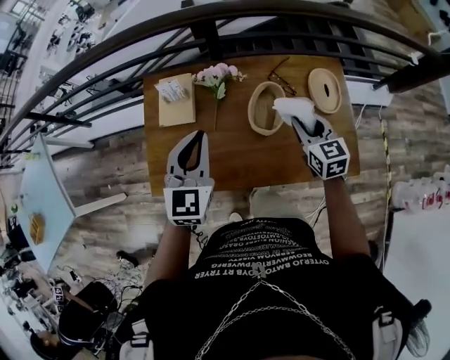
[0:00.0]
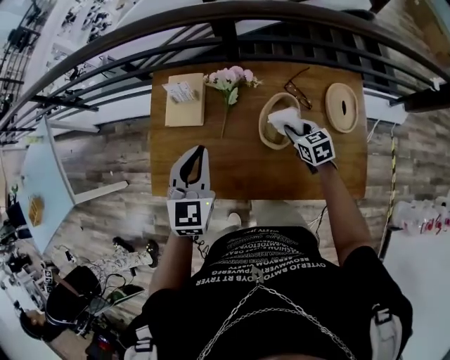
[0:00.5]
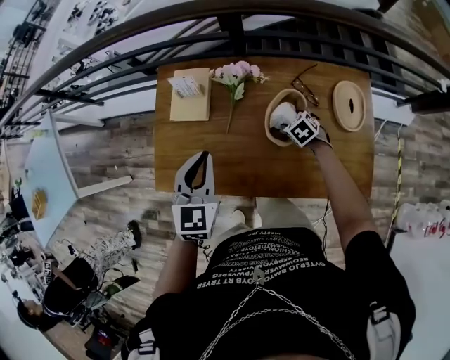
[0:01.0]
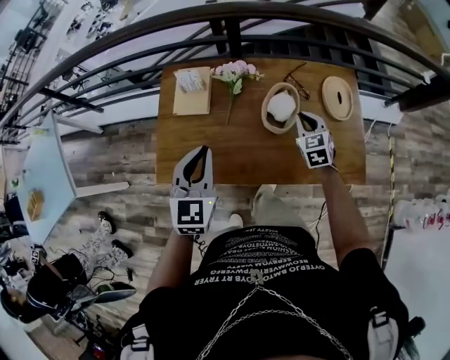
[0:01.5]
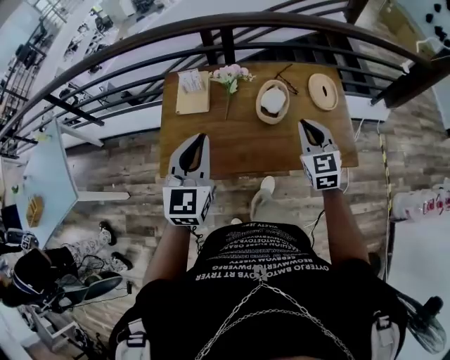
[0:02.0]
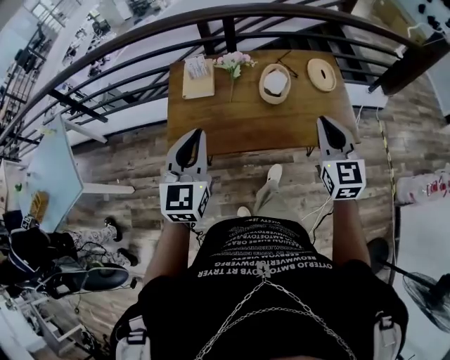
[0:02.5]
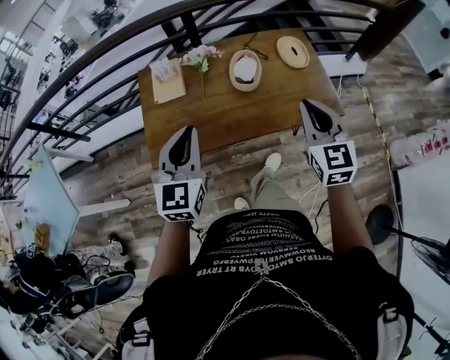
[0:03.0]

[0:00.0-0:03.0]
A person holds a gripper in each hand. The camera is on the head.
0:00.0 to 0:01.5: The right gripper travels downward and back again, some 25 cm each way, and opens, then closes again; the left gripper heads backward, covering about 5 cm.
0:01.5 to 0:03.0: The left gripper goes roughly 15 cm backward and upward. Meanwhile the right gripper is displaced backward and upward by some 35 cm, and changes its angle by approximately 30 degrees.

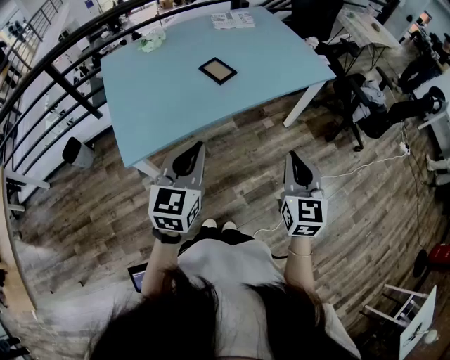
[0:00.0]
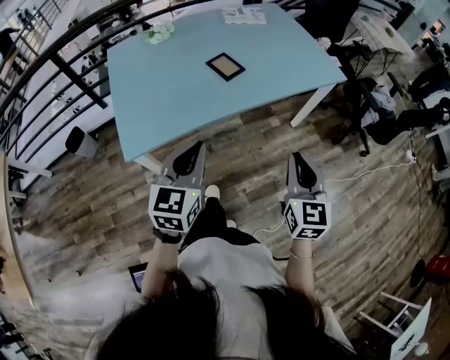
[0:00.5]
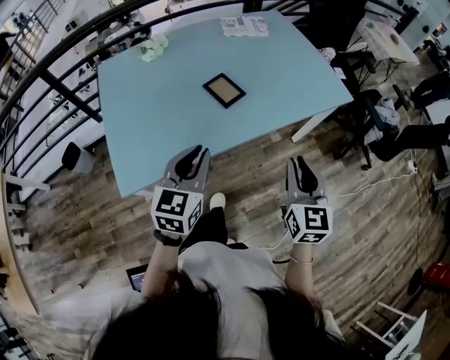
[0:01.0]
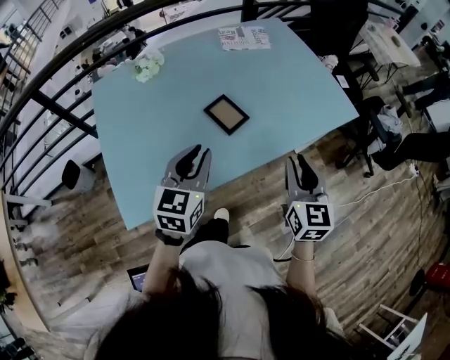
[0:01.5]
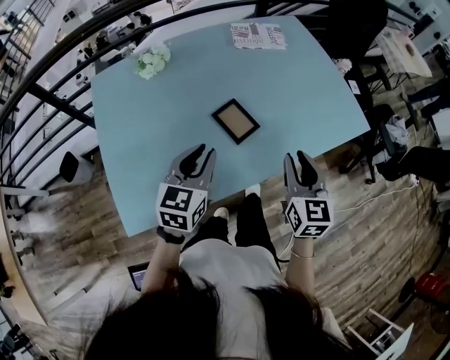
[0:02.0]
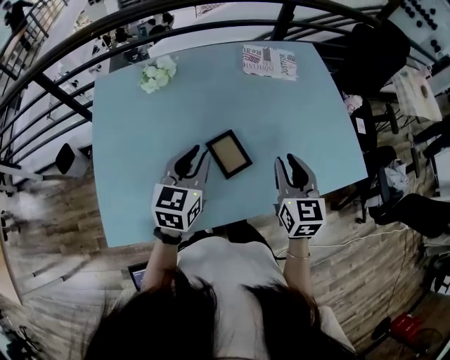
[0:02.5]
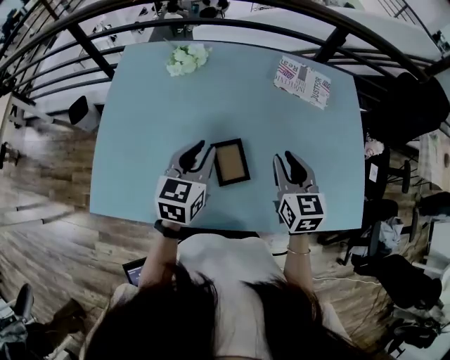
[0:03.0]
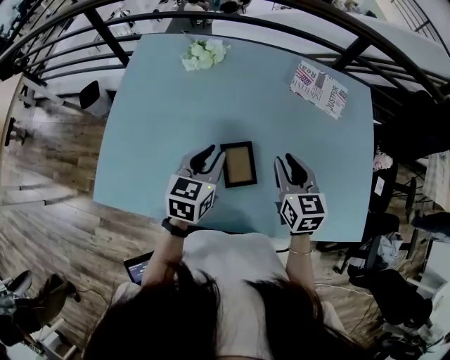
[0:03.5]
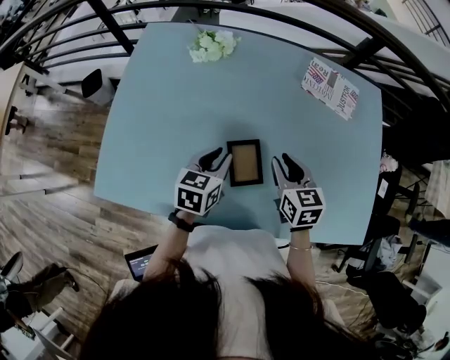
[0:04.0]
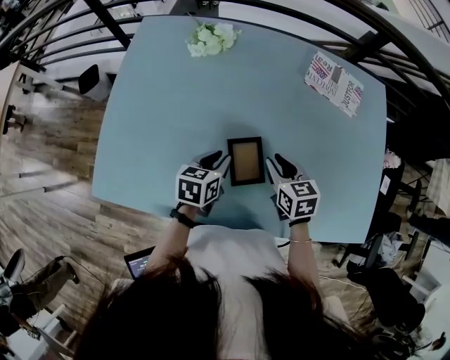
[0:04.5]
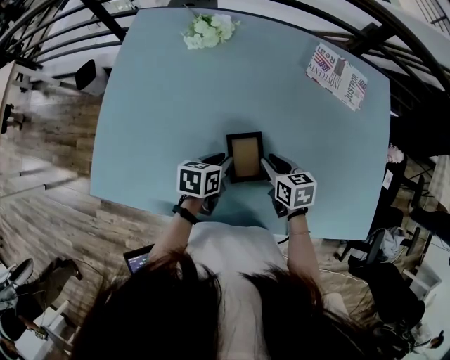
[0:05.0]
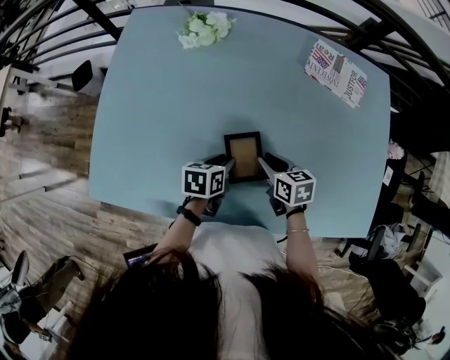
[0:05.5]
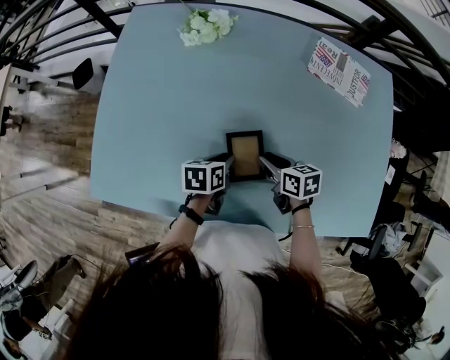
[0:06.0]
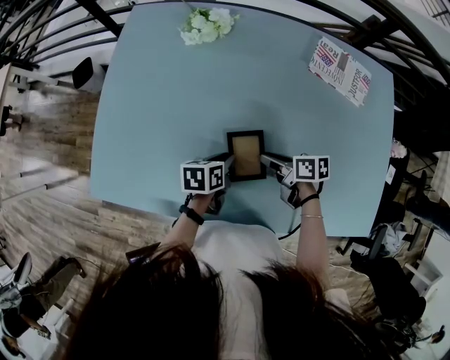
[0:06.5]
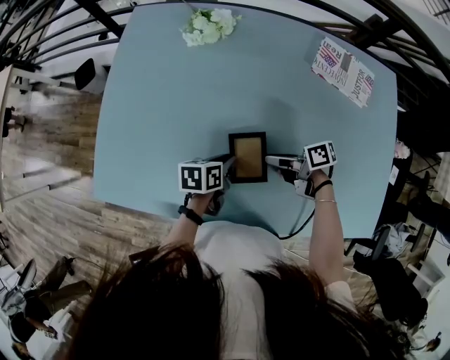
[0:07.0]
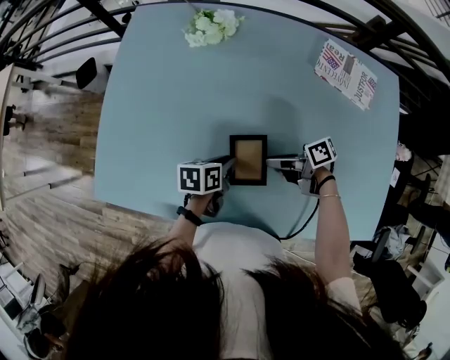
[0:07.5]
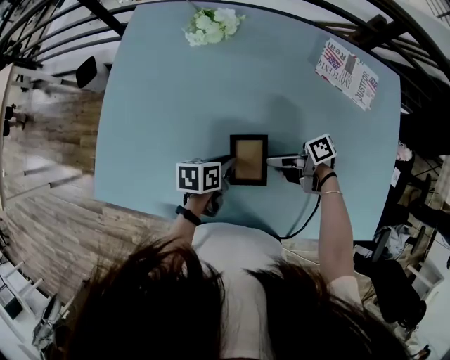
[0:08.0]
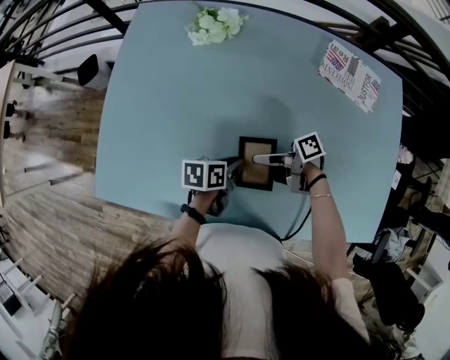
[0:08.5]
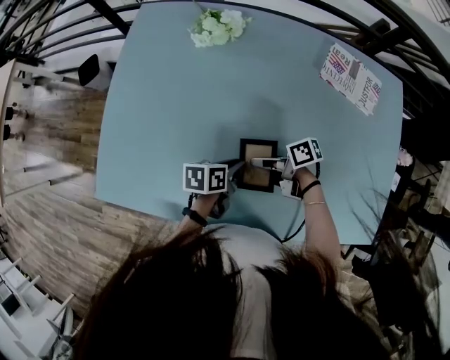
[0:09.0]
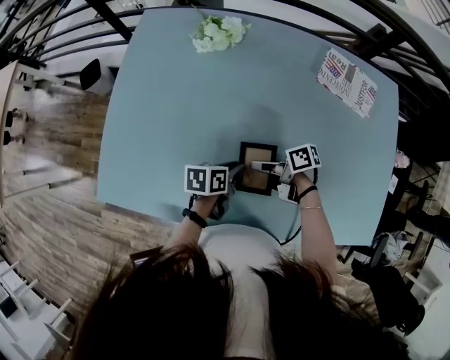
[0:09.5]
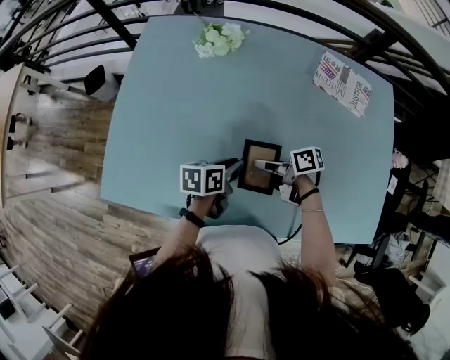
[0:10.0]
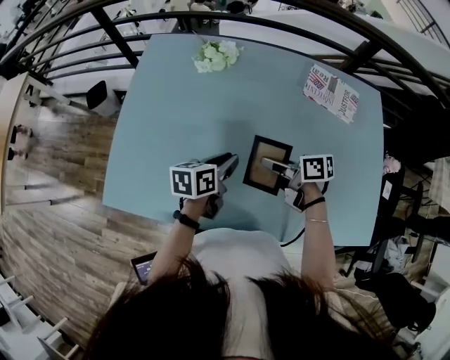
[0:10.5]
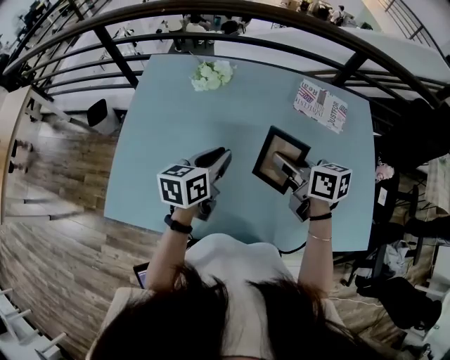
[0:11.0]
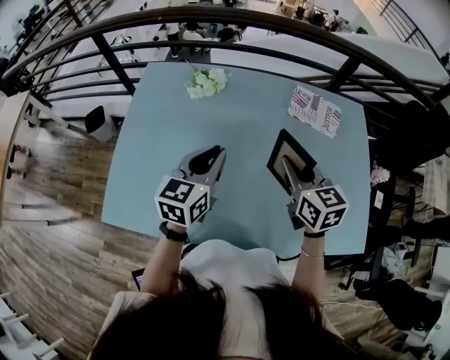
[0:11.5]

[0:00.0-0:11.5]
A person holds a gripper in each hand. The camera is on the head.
0:00.0 to 0:02.0: Both grippers travel together forward, approximately 30 cm.
0:02.0 to 0:04.0: The right gripper ends up approximately 25 cm from where it was, and turns by some 40 degrees, while the left gripper changes place by about 15 cm, and rotates roughly 30 degrees.
0:04.0 to 0:06.0: The grippers both shift downward by some 10 cm. The right gripper turns by approximately 30 degrees. The left gripper turns by about 30 degrees.
0:06.0 to 0:07.5: The right gripper swivels roughly 50 degrees.
0:07.5 to 0:09.5: The right gripper changes place by roughly 5 cm.
0:09.5 to 0:11.5: The two grippers go some 25 cm upward. The right gripper changes its angle by about 80 degrees. Meanwhile the left gripper swivels about 50 degrees.

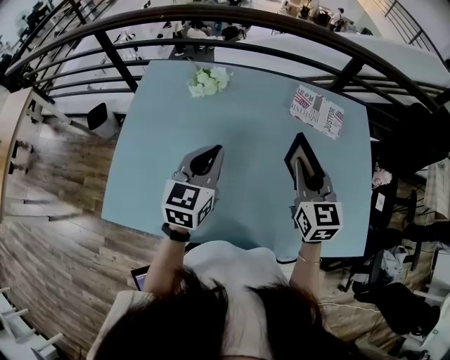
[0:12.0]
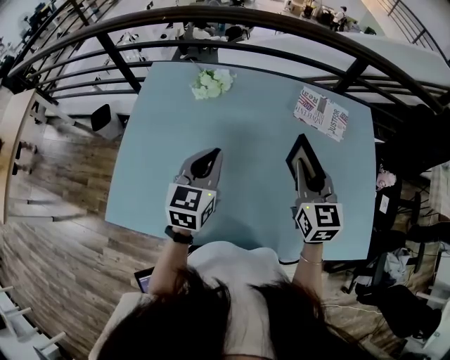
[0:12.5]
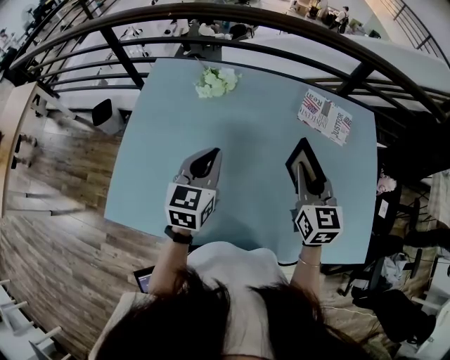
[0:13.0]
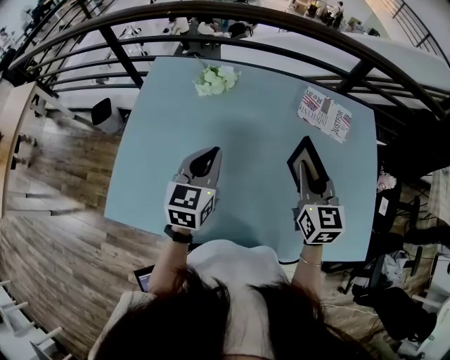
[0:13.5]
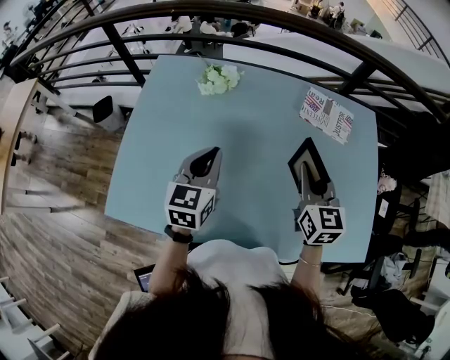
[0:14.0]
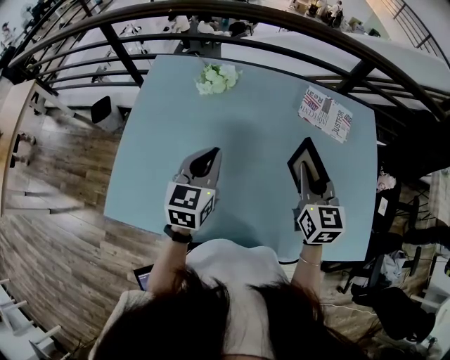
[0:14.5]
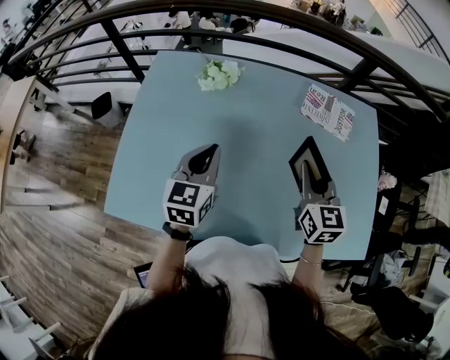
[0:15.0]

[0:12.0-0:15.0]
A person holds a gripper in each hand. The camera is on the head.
0:12.0 to 0:13.5: The grippers stay close to where they were, moving slightly.
0:13.5 to 0:15.0: Both grippers stay about where they are.

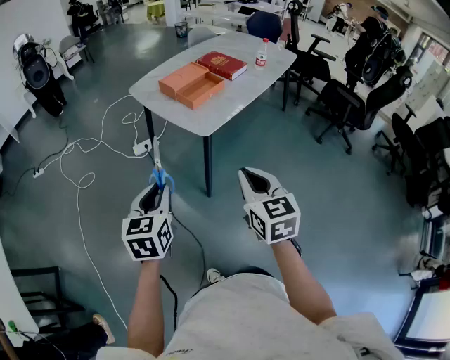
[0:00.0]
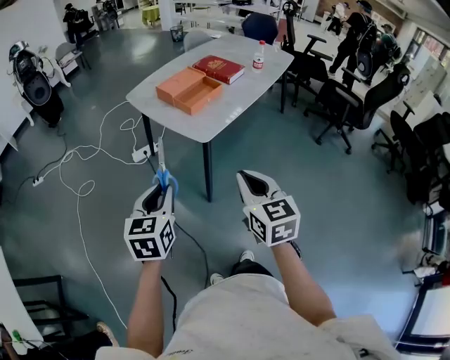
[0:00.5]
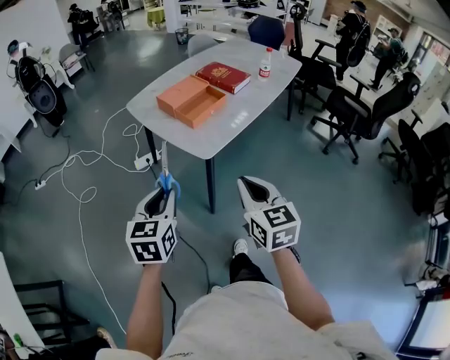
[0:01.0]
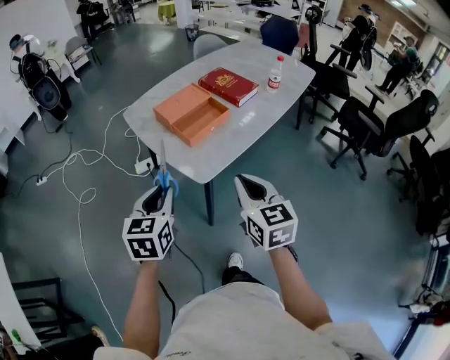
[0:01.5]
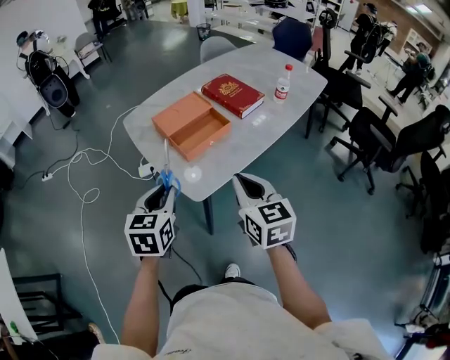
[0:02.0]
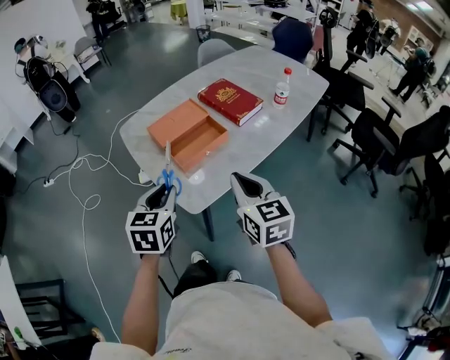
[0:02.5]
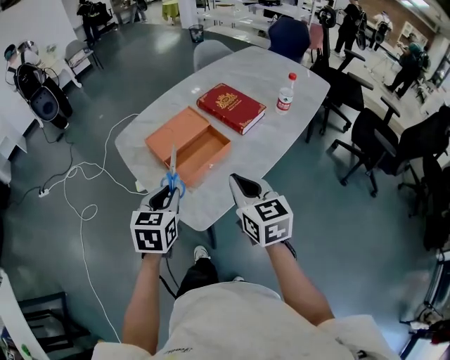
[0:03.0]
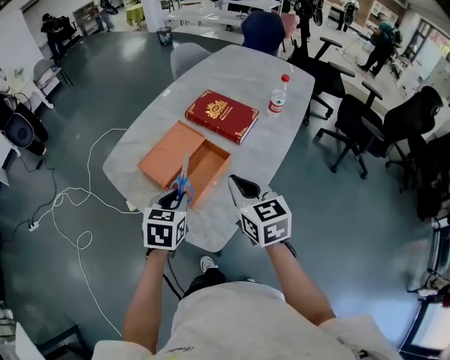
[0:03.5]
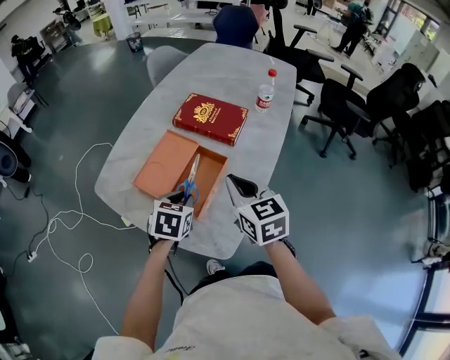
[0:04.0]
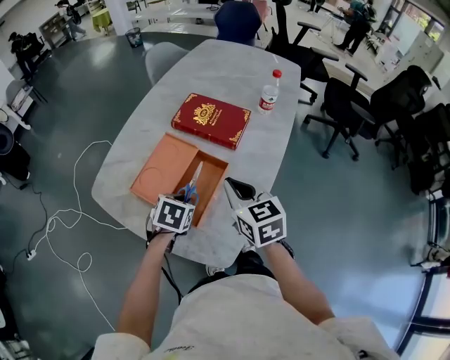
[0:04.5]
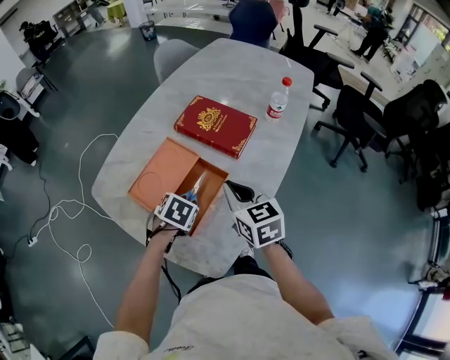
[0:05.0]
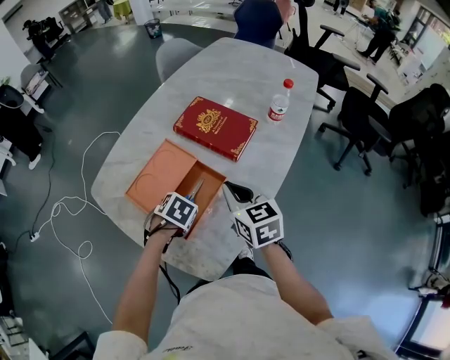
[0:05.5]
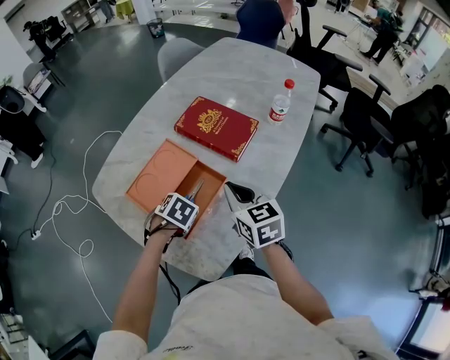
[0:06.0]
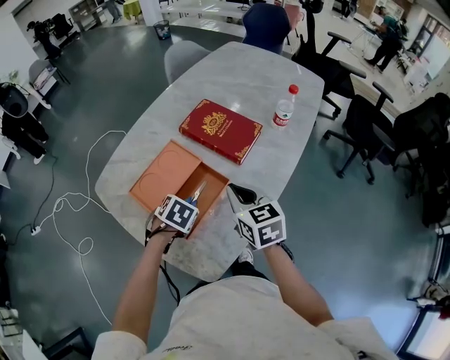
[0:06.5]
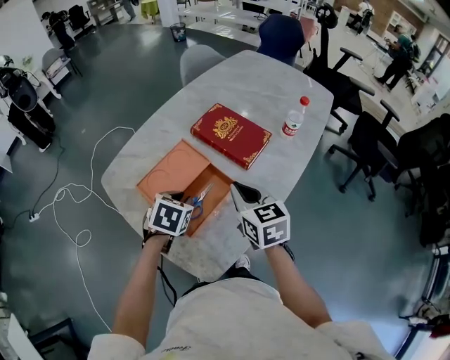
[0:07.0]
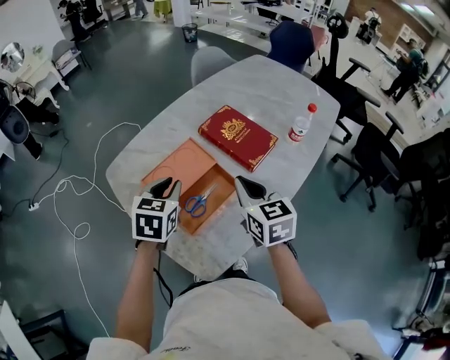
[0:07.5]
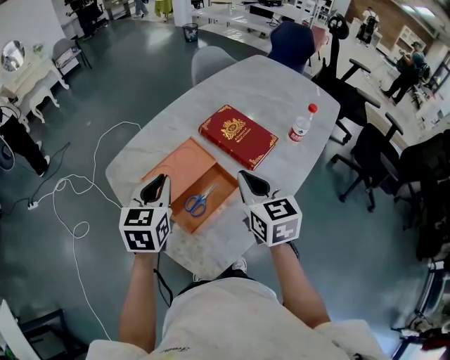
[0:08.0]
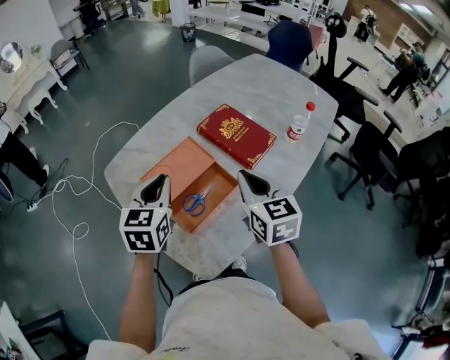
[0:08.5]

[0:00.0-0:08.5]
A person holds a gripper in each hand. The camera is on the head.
0:00.0 to 0:02.0: The left gripper is displaced forward and to the right by about 30 cm. The right gripper travels forward by about 30 cm.
0:02.0 to 0:04.0: The right gripper changes place by roughly 20 cm; the left gripper changes place by approximately 30 cm, and changes its angle by about 40 degrees.
0:04.0 to 0:06.5: The right gripper changes place by some 10 cm; the left gripper goes roughly 5 cm downward, and rotates approximately 20 degrees.
0:06.5 to 0:08.5: The right gripper goes roughly 5 cm upward. Meanwhile the left gripper is displaced upward by approximately 20 cm, and tips its fingers upward by some 50 degrees.
